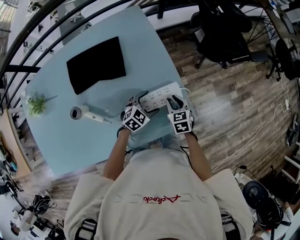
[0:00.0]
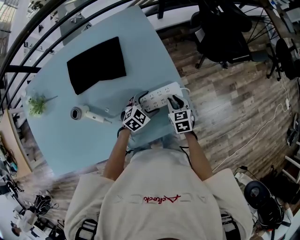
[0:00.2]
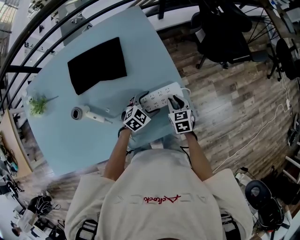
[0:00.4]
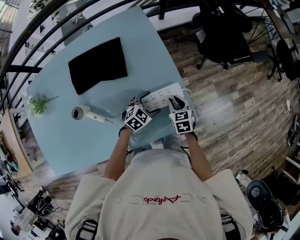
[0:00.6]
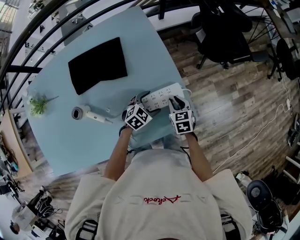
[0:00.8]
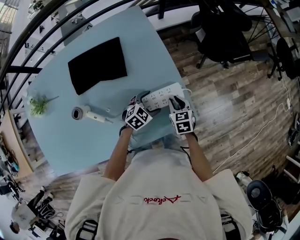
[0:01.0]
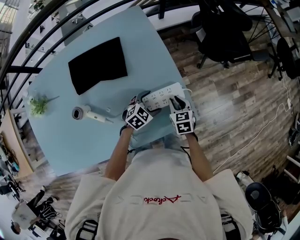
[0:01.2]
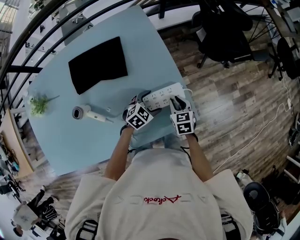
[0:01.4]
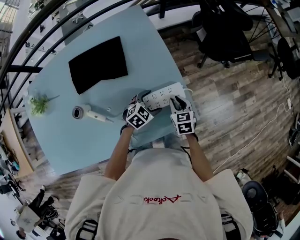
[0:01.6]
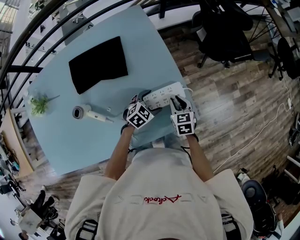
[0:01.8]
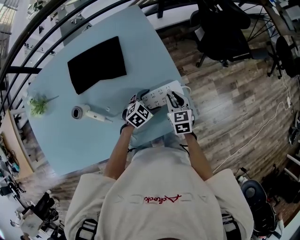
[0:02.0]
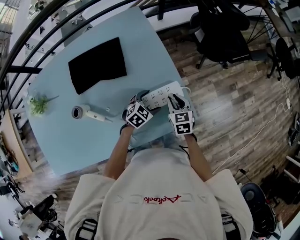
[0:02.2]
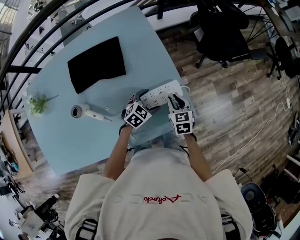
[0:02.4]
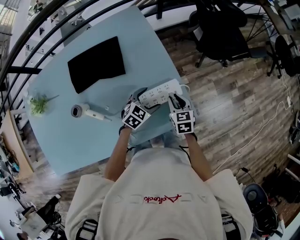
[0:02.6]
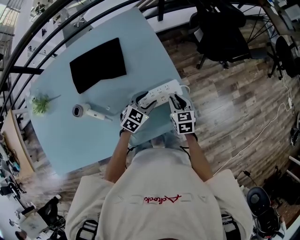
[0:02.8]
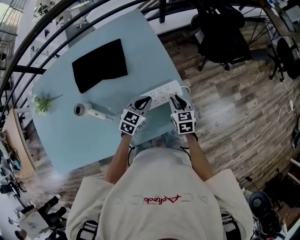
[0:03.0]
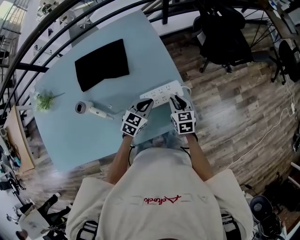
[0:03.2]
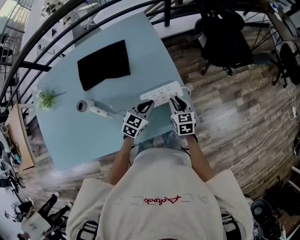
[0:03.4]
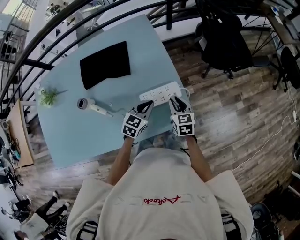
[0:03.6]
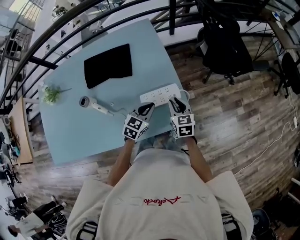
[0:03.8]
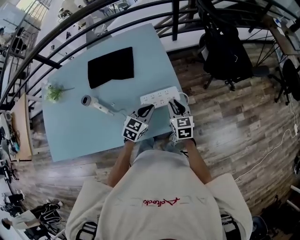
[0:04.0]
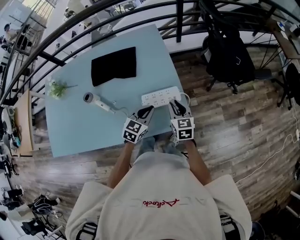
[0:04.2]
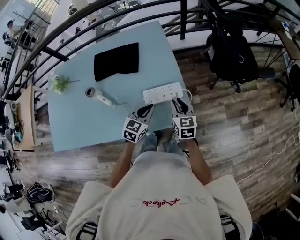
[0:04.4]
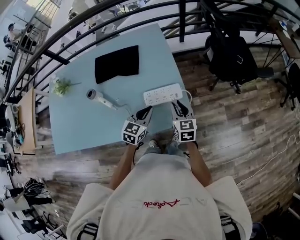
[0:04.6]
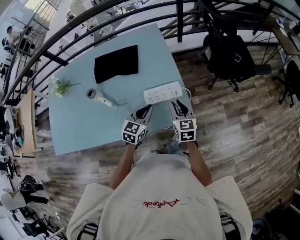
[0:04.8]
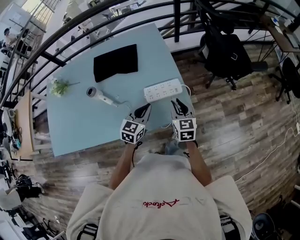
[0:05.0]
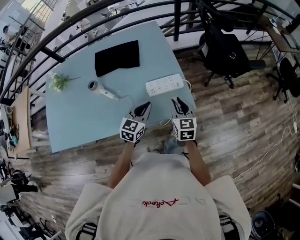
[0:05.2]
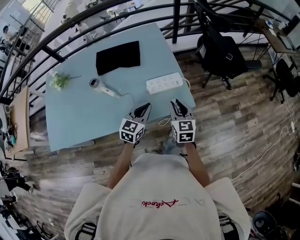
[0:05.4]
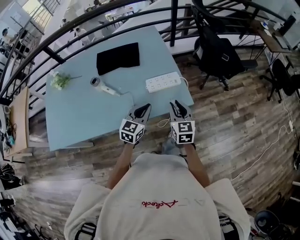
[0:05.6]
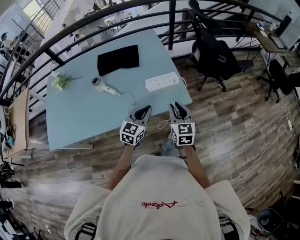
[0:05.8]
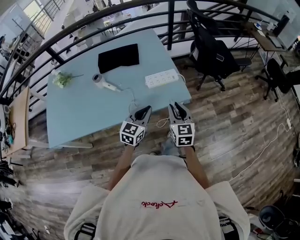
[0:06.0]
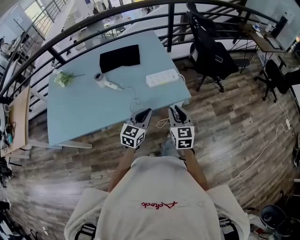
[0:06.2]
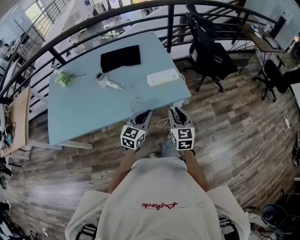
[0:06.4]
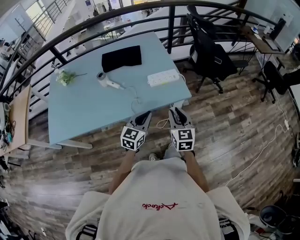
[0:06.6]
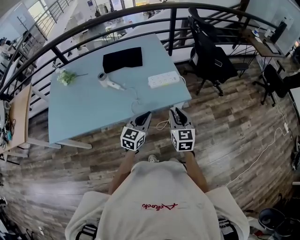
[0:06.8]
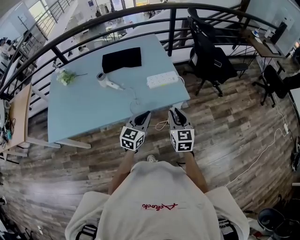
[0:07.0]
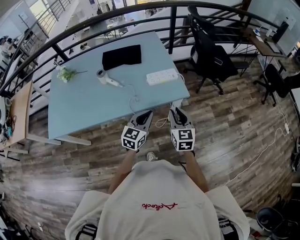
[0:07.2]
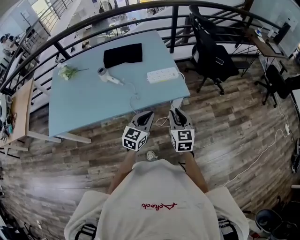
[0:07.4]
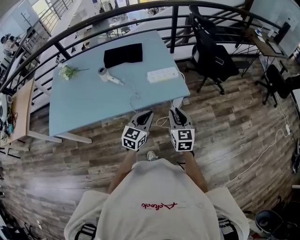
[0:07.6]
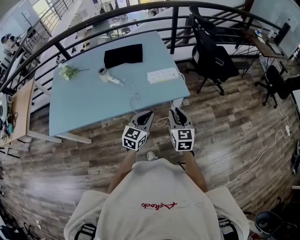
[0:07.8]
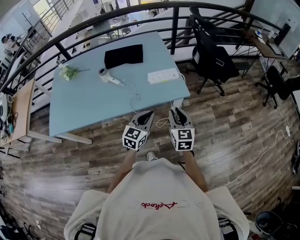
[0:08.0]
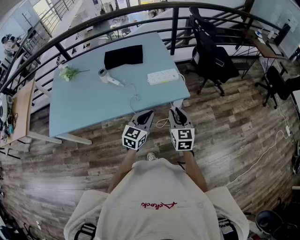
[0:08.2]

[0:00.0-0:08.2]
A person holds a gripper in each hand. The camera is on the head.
0.0 to 1.6 s: The grippers move only a little.
1.6 to 3.2 s: The left gripper is displaced upward by about 5 cm, turns by approximately 20 degrees, and closes up.
3.2 to 5.0 s: The right gripper goes about 15 cm upward and backward; the left gripper heads backward and upward, covering roughly 15 cm, and changes its angle by some 20 degrees.
5.0 to 6.6 s: The two grippers go approximately 25 cm backward.
6.6 to 8.2 s: The grippers make only small movements.

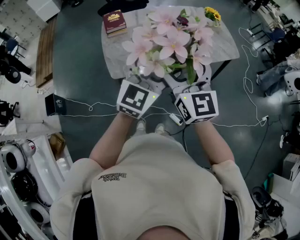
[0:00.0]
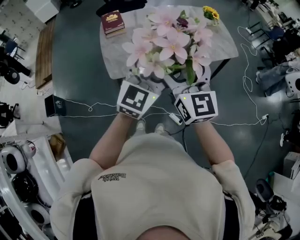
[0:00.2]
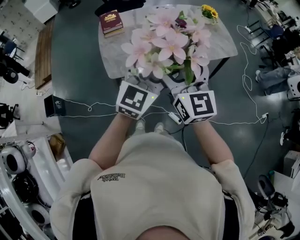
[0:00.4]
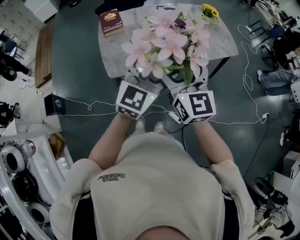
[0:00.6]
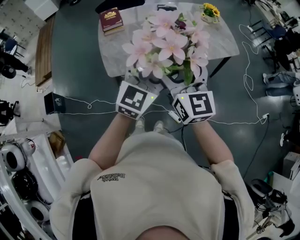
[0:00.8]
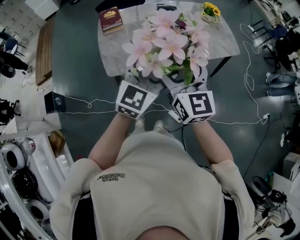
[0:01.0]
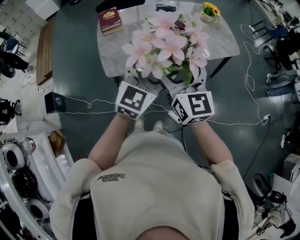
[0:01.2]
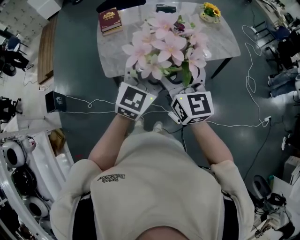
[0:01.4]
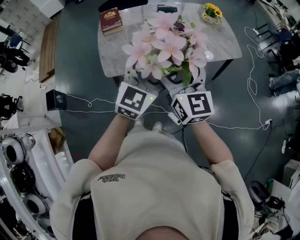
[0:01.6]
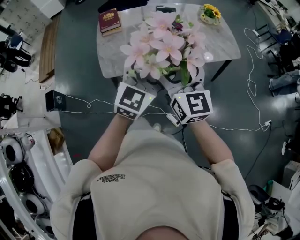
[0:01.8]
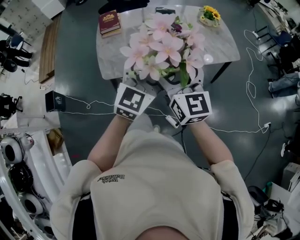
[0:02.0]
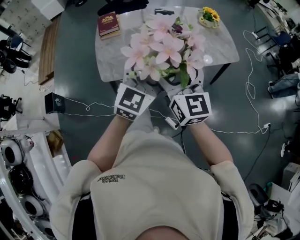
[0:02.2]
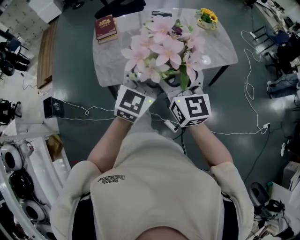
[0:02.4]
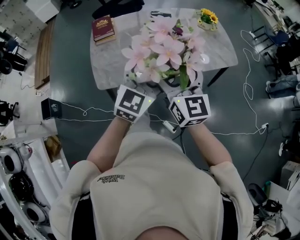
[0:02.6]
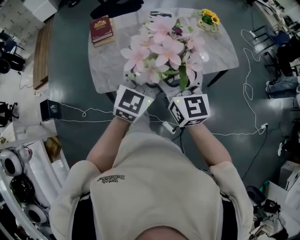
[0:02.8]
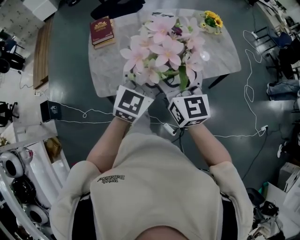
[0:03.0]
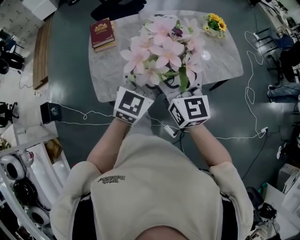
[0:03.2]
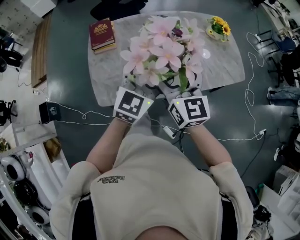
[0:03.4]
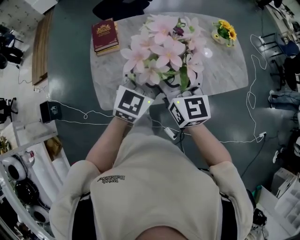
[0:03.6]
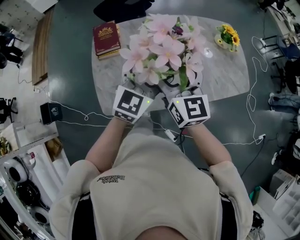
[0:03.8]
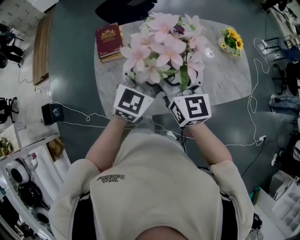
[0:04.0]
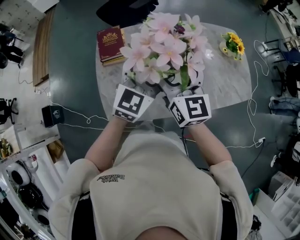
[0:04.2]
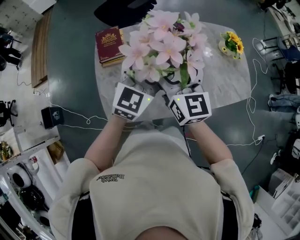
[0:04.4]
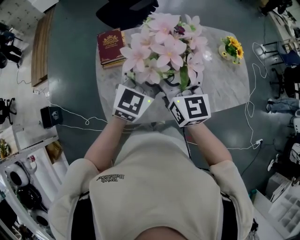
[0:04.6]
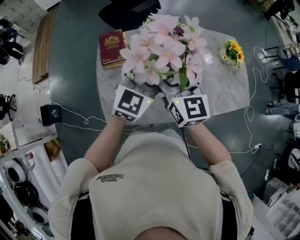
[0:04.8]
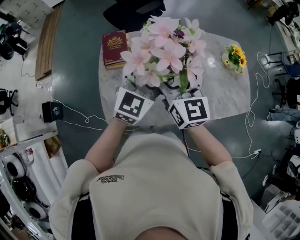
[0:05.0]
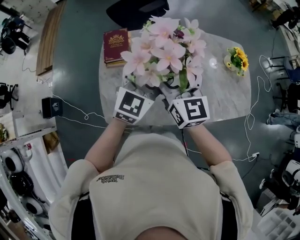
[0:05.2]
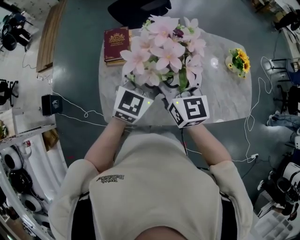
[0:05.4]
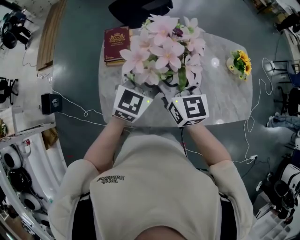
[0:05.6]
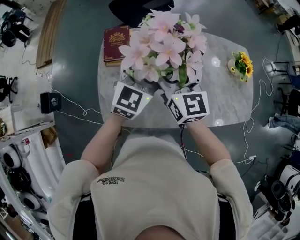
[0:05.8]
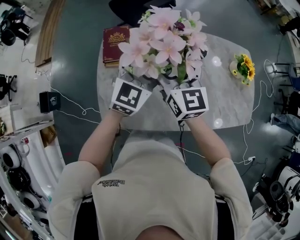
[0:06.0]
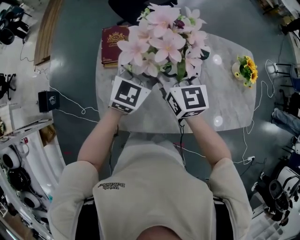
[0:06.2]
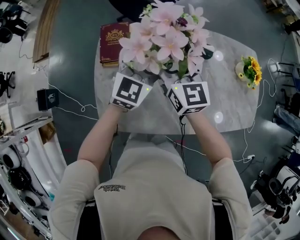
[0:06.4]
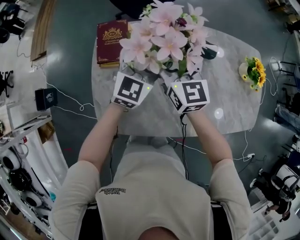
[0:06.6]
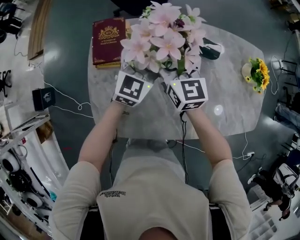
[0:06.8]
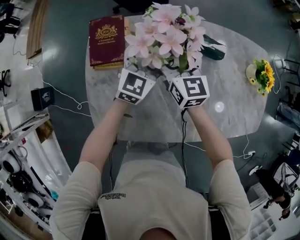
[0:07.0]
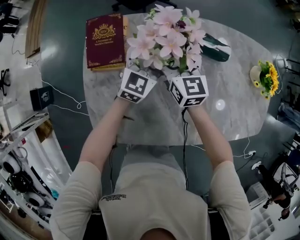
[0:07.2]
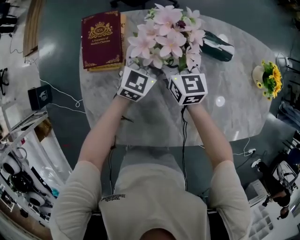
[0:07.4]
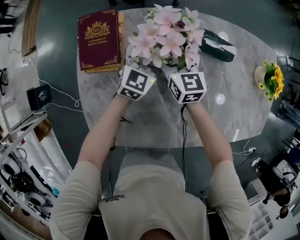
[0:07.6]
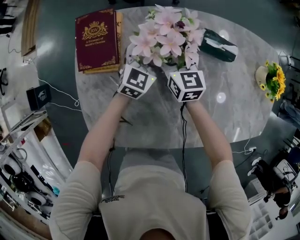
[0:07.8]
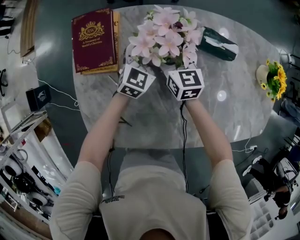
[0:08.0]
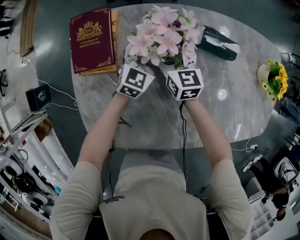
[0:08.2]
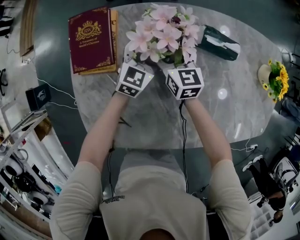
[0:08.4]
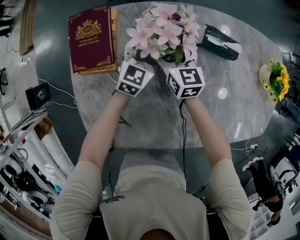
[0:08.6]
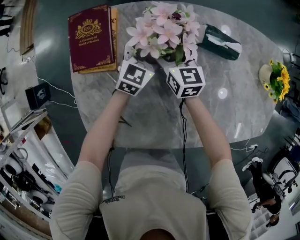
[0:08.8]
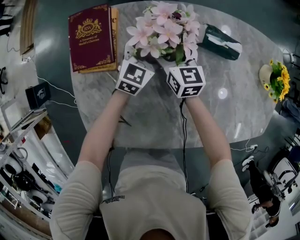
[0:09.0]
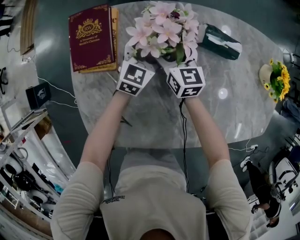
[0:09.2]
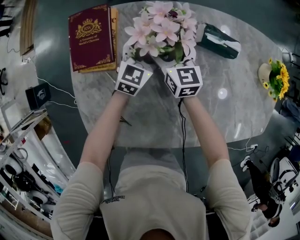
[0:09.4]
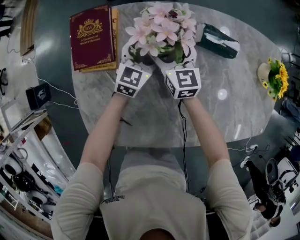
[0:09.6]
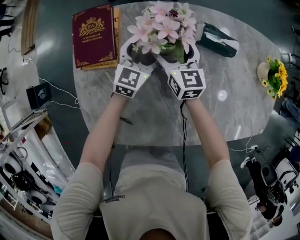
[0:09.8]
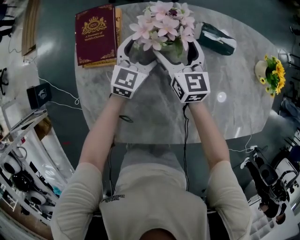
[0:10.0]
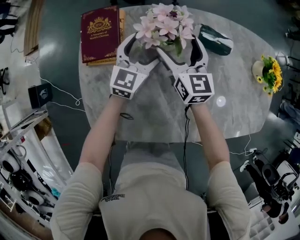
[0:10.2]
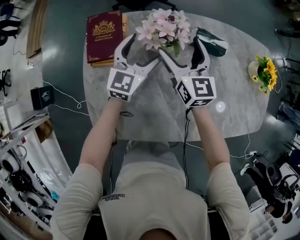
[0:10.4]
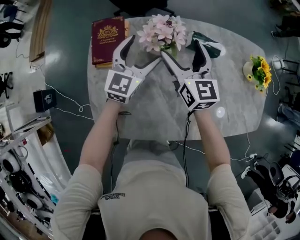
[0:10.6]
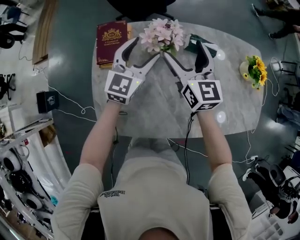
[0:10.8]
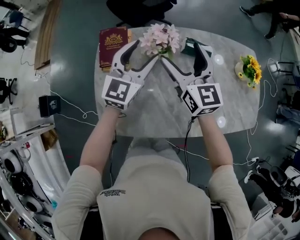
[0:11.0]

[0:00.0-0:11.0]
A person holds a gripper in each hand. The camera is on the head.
0.0 to 1.6 s: Both grippers travel together to the right, approximately 5 cm.
1.6 to 3.2 s: The grippers both shift forward by approximately 15 cm.
3.2 to 4.8 s: Both grippers travel together forward and to the left, roughly 20 cm.
4.8 to 6.2 s: Both grippers move forward, approximately 15 cm.
6.2 to 7.8 s: The right gripper goes roughly 35 cm downward and forward. The left gripper travels downward by roughly 30 cm.
7.8 to 9.4 s: The grippers make only small movements.
9.4 to 11.0 s: Both grippers travel together upward, approximately 30 cm. The left gripper swivels about 20 degrees, and closes its fingers.

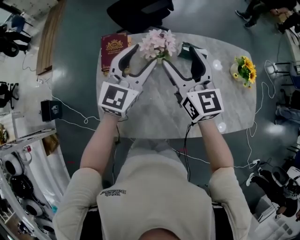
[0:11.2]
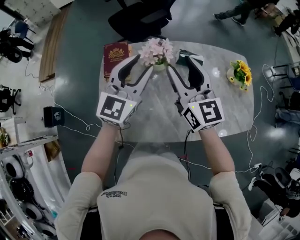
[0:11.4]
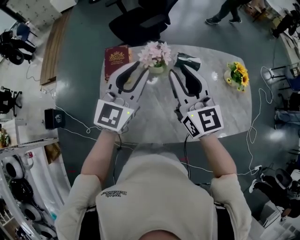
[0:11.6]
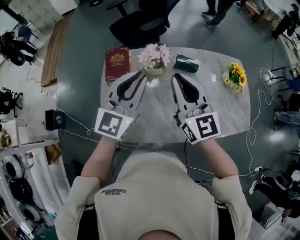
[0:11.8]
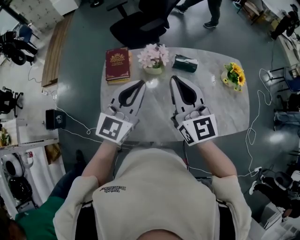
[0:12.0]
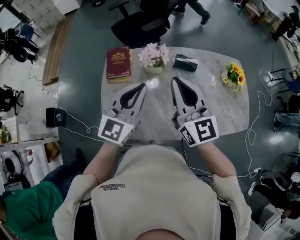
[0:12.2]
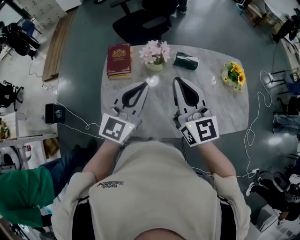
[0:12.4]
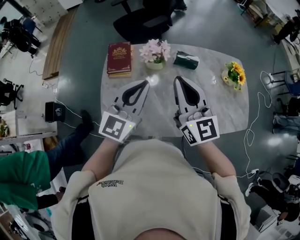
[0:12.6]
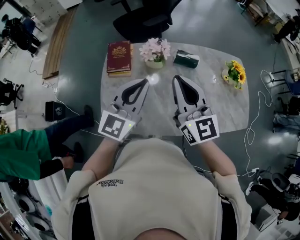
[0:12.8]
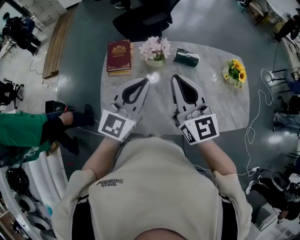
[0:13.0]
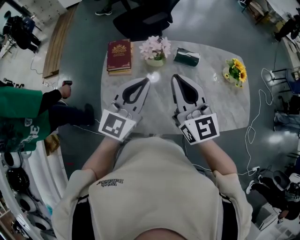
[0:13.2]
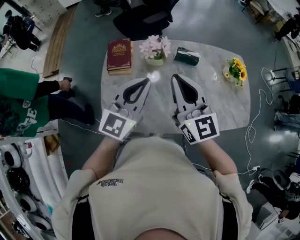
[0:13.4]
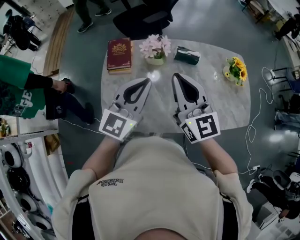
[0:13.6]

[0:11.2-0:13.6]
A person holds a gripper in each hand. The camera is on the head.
11.2 to 12.4 s: The right gripper is displaced backward and upward by about 15 cm, and closes. Meanwhile the left gripper moves backward, approximately 15 cm, and closes its fingers.
12.4 to 13.6 s: Both grippers stay about where they are.

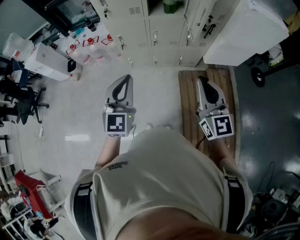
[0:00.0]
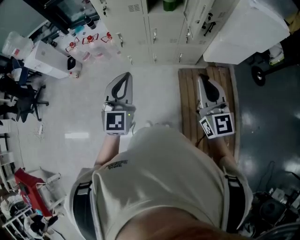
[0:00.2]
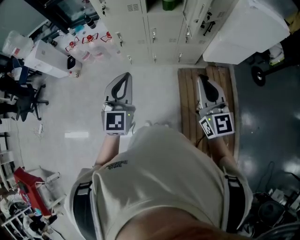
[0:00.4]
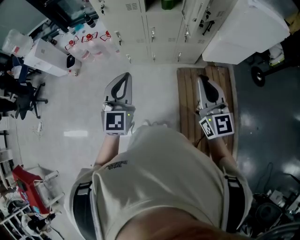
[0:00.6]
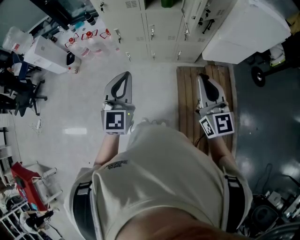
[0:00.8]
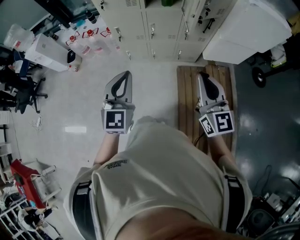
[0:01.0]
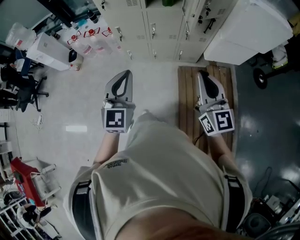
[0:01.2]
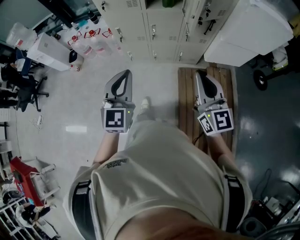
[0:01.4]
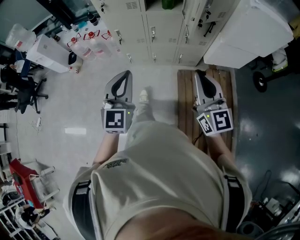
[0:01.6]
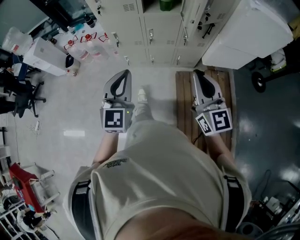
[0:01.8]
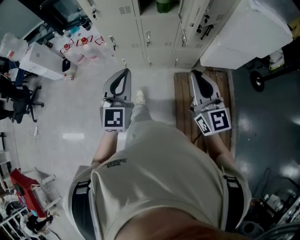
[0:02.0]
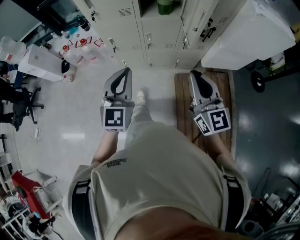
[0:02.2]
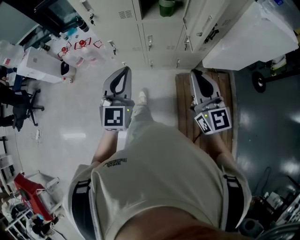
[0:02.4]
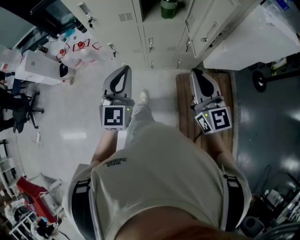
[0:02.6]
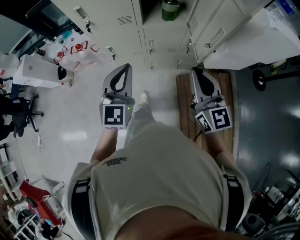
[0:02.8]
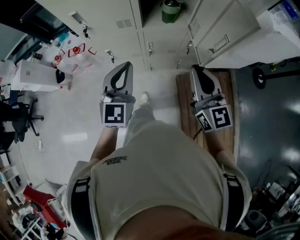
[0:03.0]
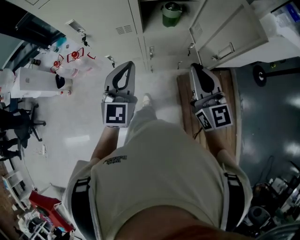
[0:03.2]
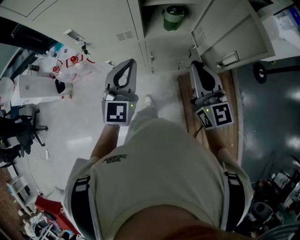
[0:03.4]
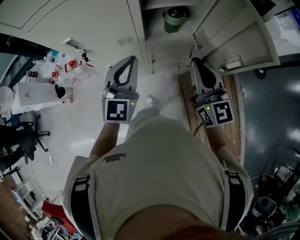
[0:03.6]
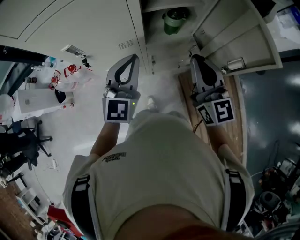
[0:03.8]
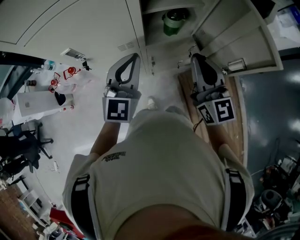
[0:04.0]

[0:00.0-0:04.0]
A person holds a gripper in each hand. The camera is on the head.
0.0 to 1.4 s: The left gripper goes approximately 5 cm to the right, while the right gripper changes place by approximately 5 cm.
1.4 to 2.6 s: Both grippers move forward, about 20 cm.
2.6 to 4.0 s: Both grippers move forward, some 20 cm.
